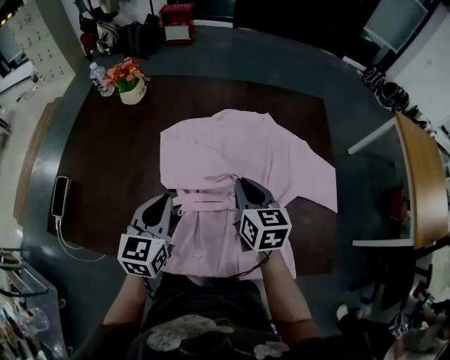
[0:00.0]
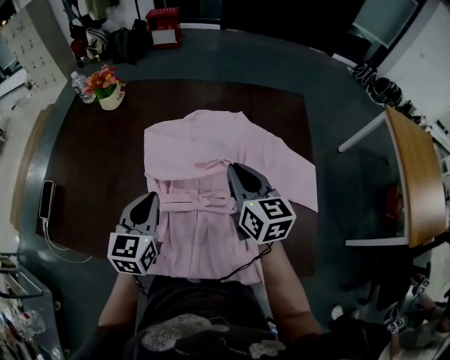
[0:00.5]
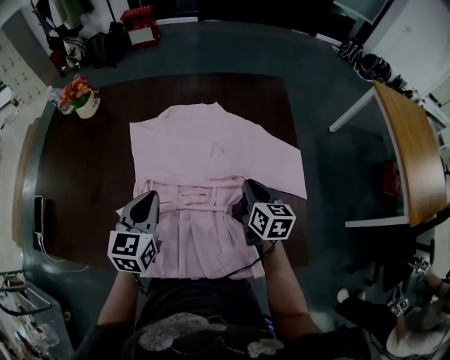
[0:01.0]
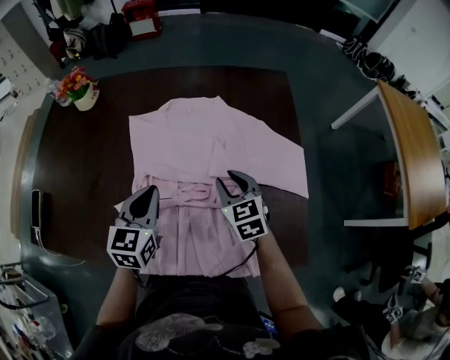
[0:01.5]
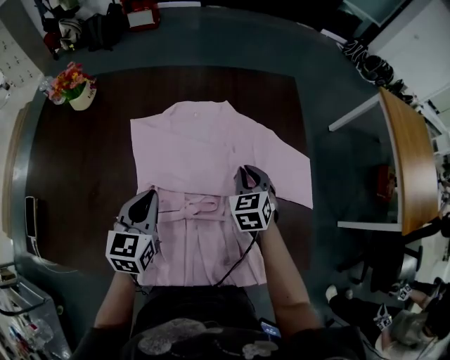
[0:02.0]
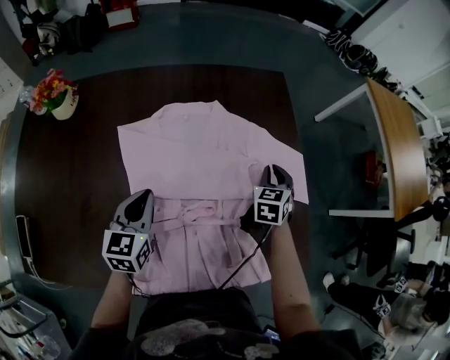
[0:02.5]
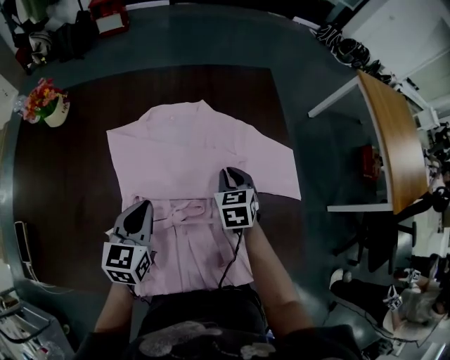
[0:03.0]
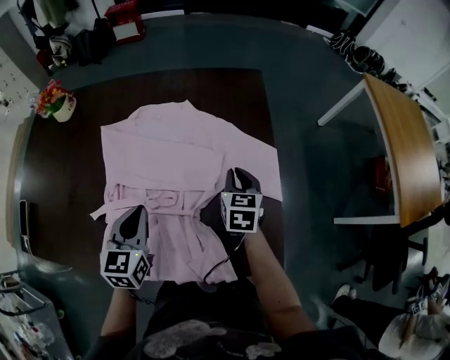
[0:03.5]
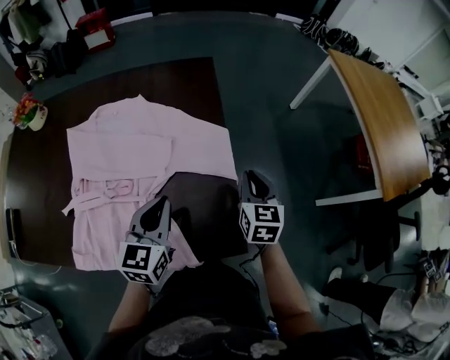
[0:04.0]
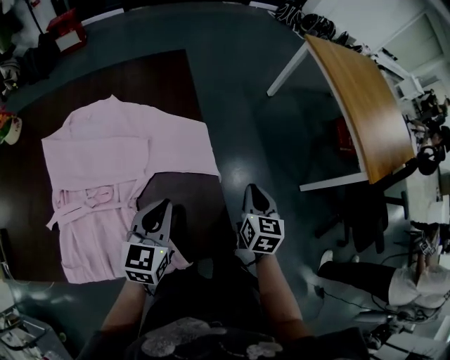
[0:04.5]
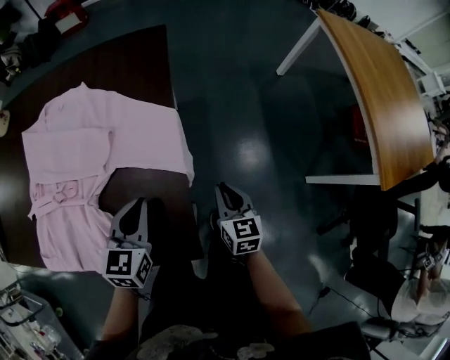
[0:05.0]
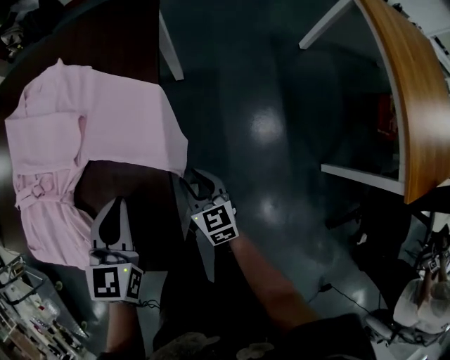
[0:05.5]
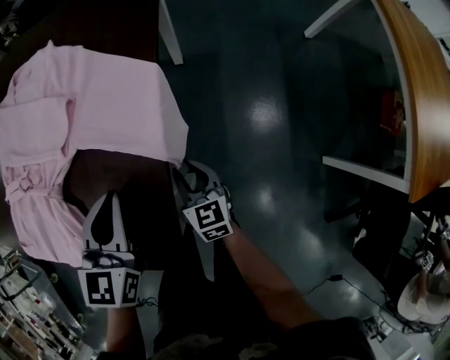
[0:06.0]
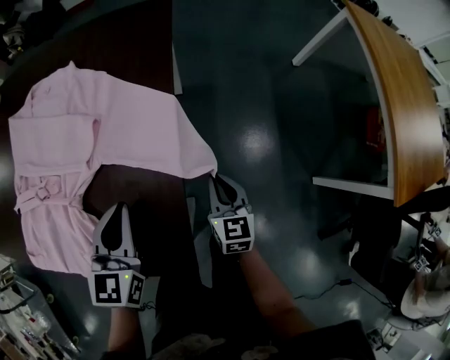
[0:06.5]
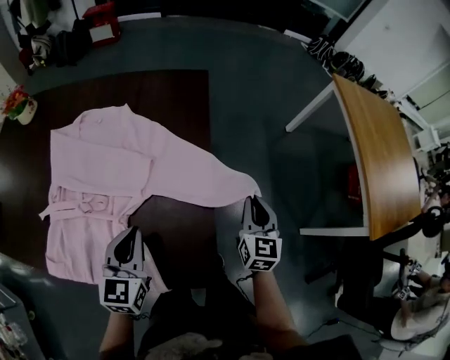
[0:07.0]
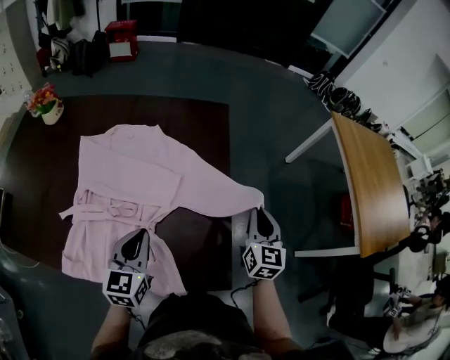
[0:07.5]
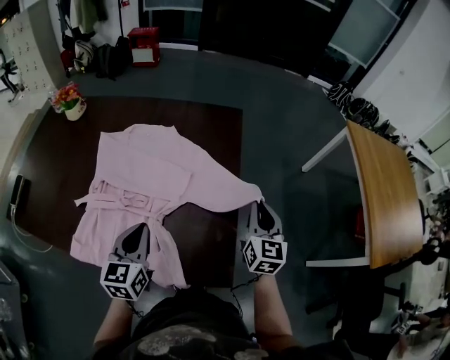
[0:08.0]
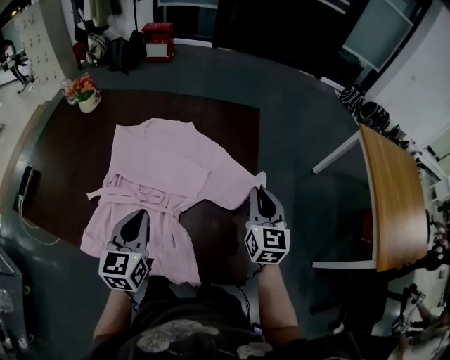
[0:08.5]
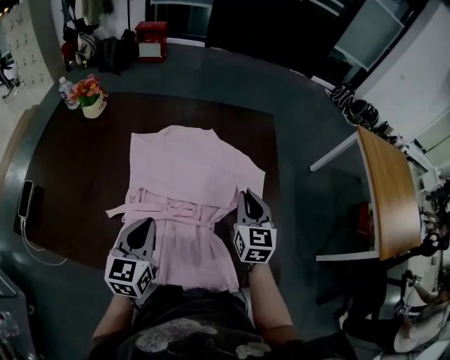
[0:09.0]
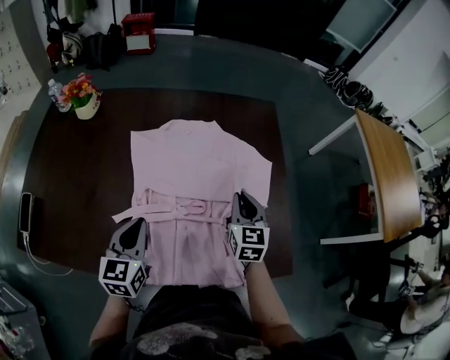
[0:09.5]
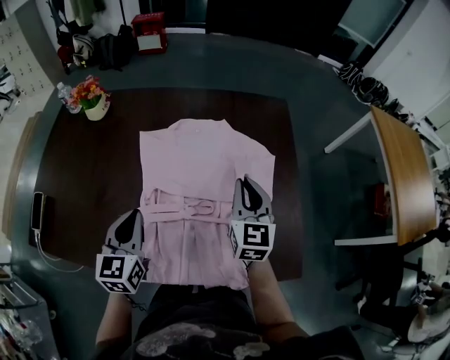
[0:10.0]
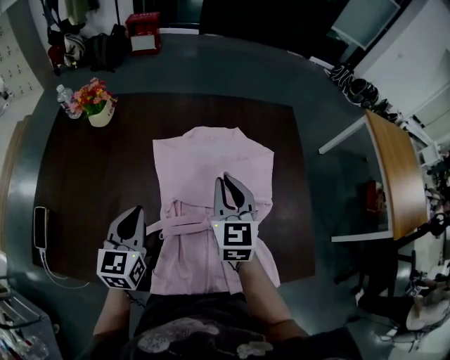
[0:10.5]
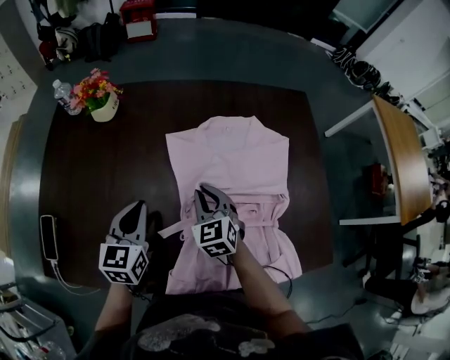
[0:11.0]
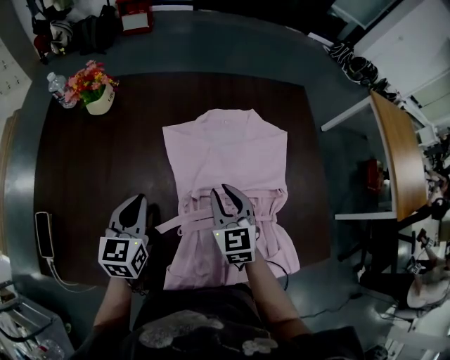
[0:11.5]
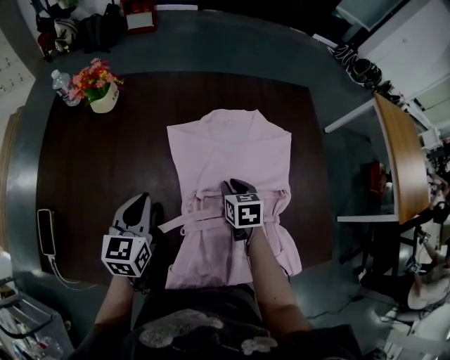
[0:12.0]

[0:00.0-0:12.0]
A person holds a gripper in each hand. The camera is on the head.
0:00.0 to 0:02.0: The left gripper is displaced to the right and forward by about 10 cm. The right gripper is displaced to the right, downward and forward by approximately 20 cm, and rotates roughly 40 degrees.
0:02.0 to 0:04.0: The right gripper goes left and right, approximately 30 cm each way, reversing 2 times, and swivels about 30 degrees. The left gripper is displaced to the right by roughly 30 cm.
0:04.0 to 0:06.0: The right gripper goes roughly 25 cm downward, swivels approximately 30 degrees, and opens its fingers. The left gripper moves roughly 15 cm.
0:06.0 to 0:08.0: The left gripper goes some 25 cm to the left and upward; the right gripper moves upward, roughly 30 cm, rotates some 30 degrees, and closes its fingers.
0:08.0 to 0:10.0: Both grippers travel together to the left, some 25 cm.
0:10.0 to 0:12.0: The right gripper goes some 25 cm downward and to the left, and tilts its fingers some 40 degrees downward. The left gripper moves to the left, forward and downward, approximately 15 cm.

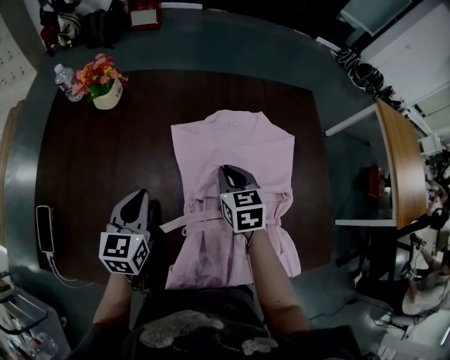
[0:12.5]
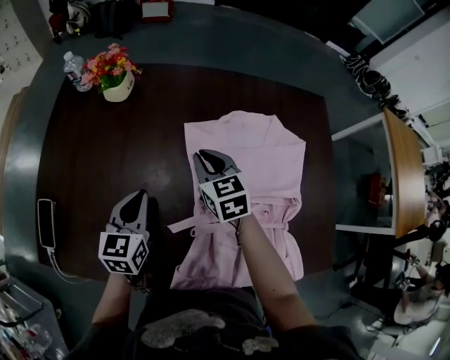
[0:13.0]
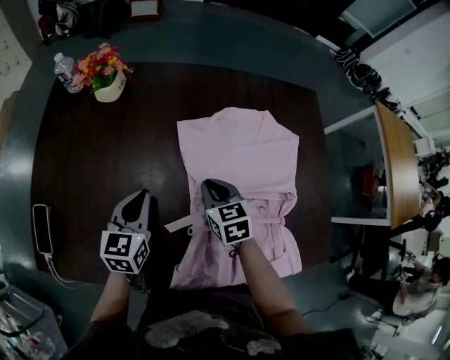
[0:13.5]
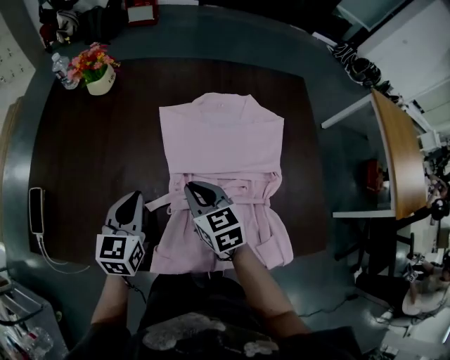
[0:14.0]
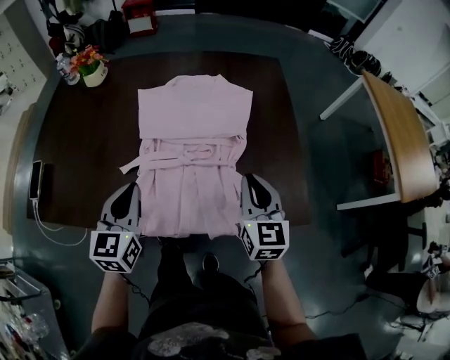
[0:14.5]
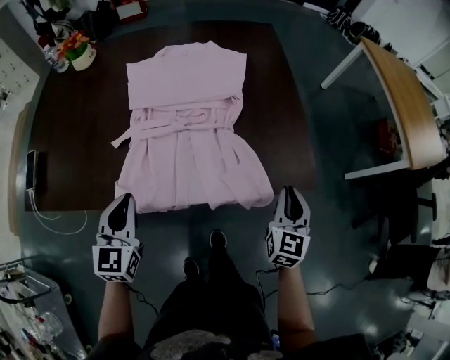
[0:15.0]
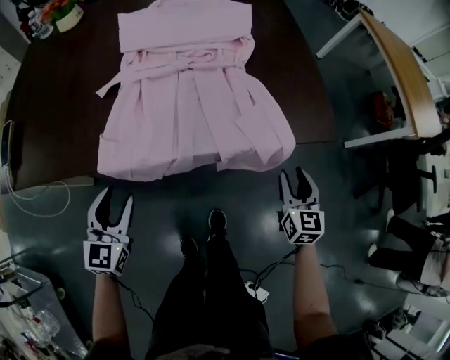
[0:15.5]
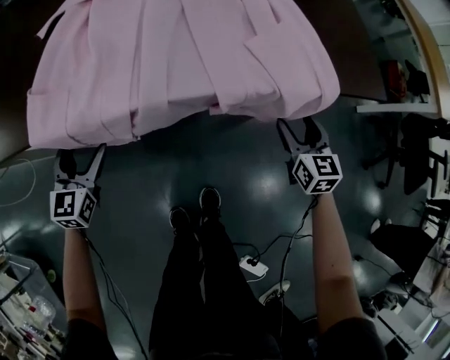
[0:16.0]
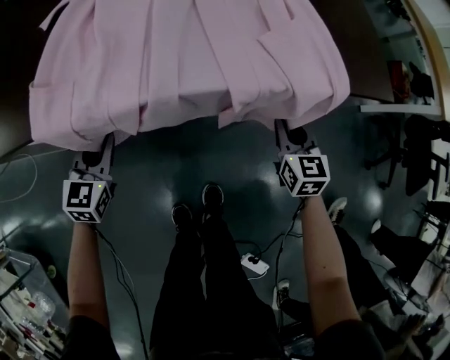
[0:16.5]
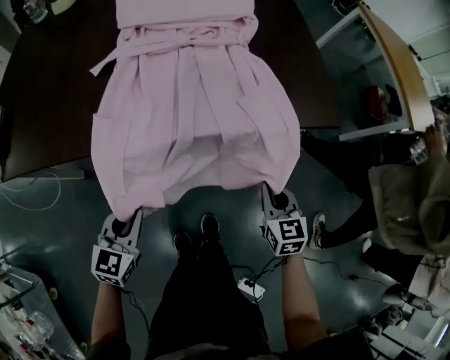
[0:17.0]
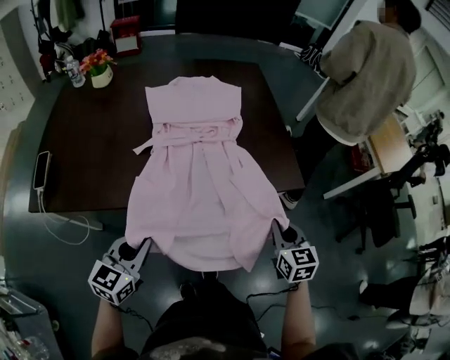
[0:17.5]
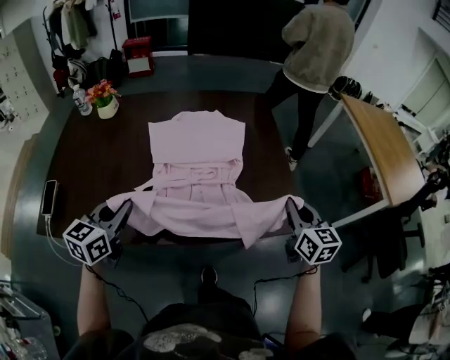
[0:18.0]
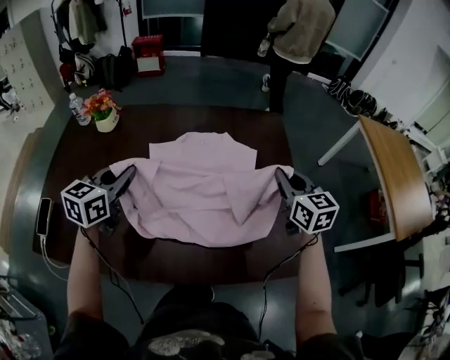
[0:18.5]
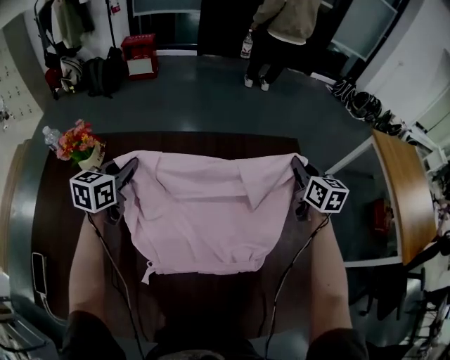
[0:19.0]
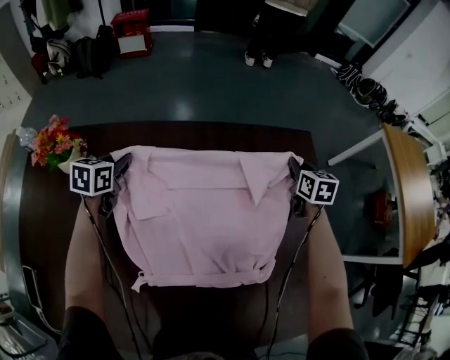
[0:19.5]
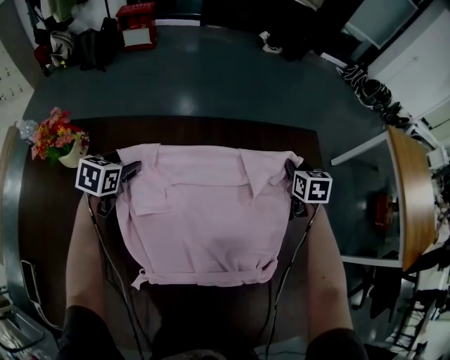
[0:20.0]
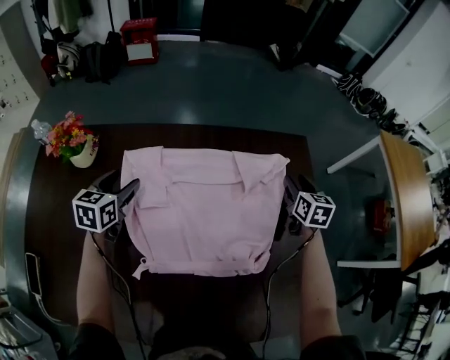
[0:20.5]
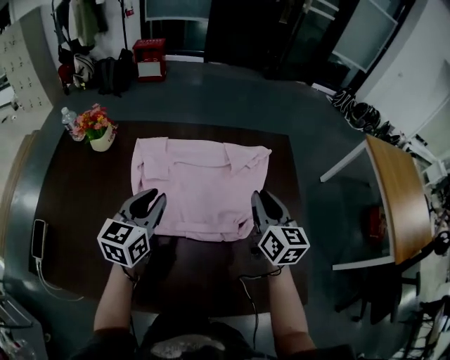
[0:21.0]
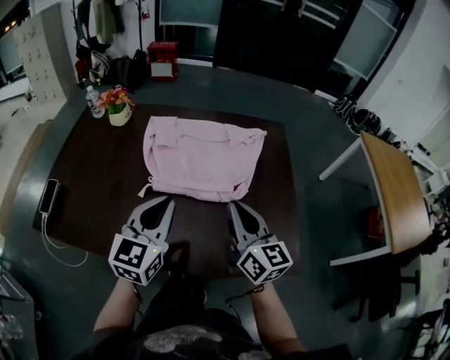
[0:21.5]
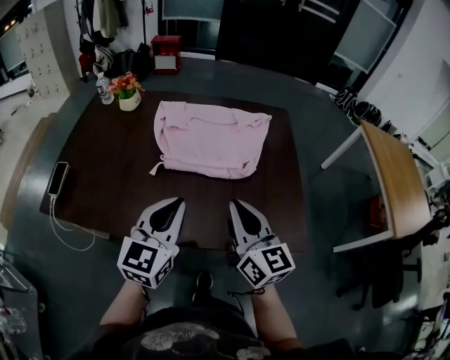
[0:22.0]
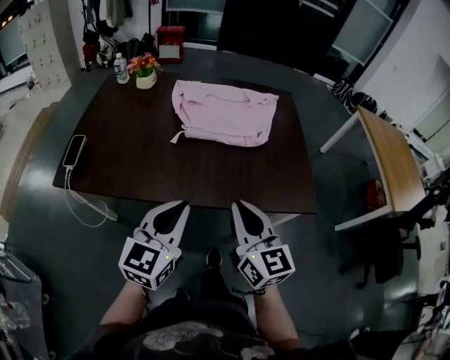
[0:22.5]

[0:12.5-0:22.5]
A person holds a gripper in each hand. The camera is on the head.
0:12.5 to 0:14.5: The grippers both shift backward and to the right by some 30 cm. The right gripper swivels roughly 20 degrees.
0:14.5 to 0:16.5: The right gripper travels downward and backward by some 40 cm, and opens, then closes again, while the left gripper travels downward by some 40 cm, rotates about 20 degrees, and opens, then closes once more.
0:16.5 to 0:18.5: Both grippers move upward and forward, roughly 50 cm.
0:18.5 to 0:20.5: The left gripper heads forward, downward and to the left, covering some 30 cm, and opens, while the right gripper heads forward and downward, covering approximately 30 cm, turns by approximately 20 degrees, and opens its fingers.
0:20.5 to 0:22.5: Both grippers are carried backward, about 60 cm. The right gripper turns by approximately 40 degrees, and closes its fingers, while the left gripper turns by about 30 degrees, and closes its fingers.

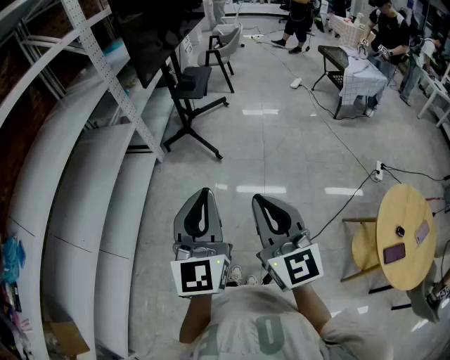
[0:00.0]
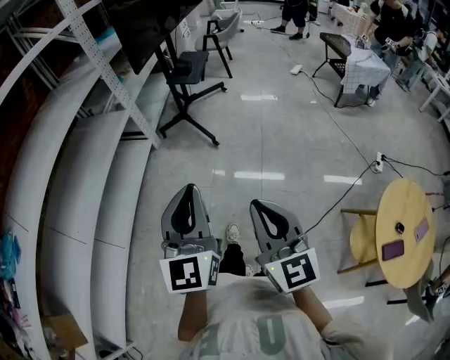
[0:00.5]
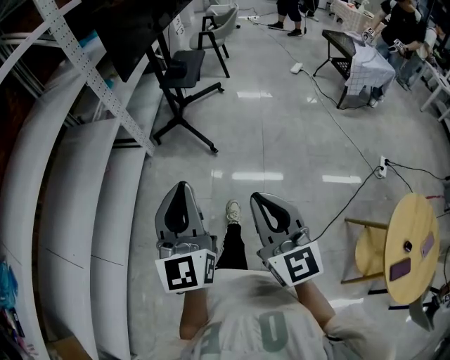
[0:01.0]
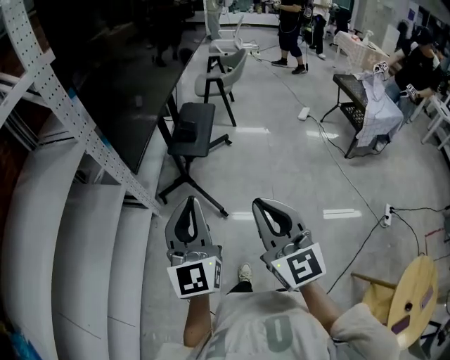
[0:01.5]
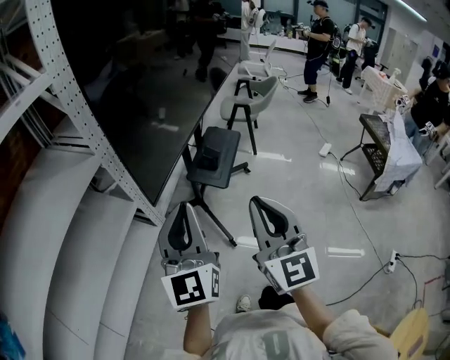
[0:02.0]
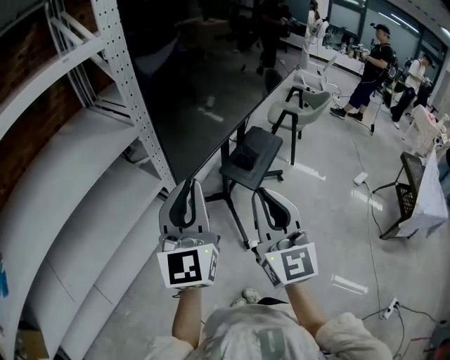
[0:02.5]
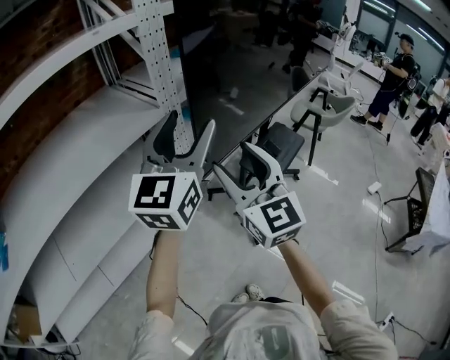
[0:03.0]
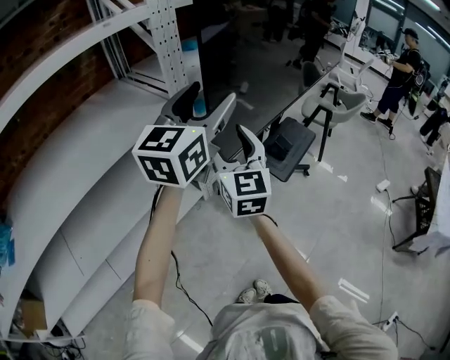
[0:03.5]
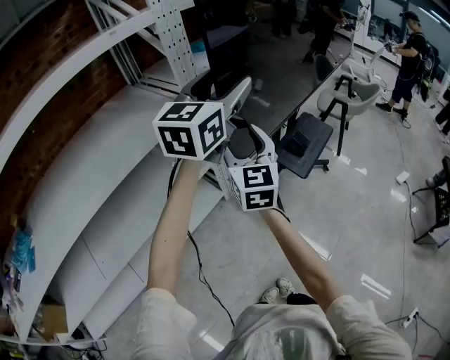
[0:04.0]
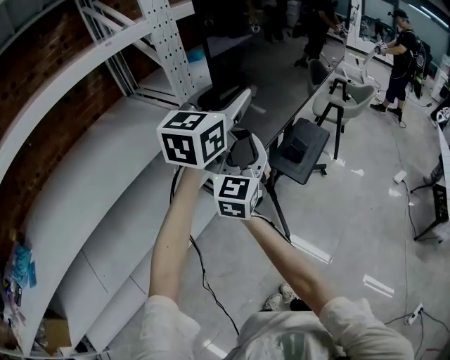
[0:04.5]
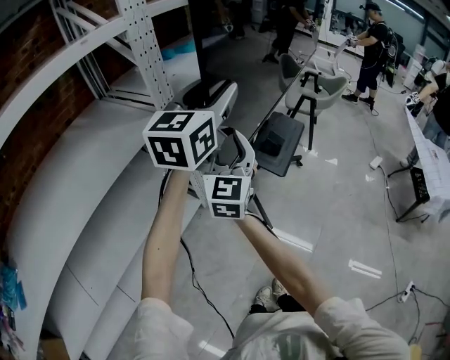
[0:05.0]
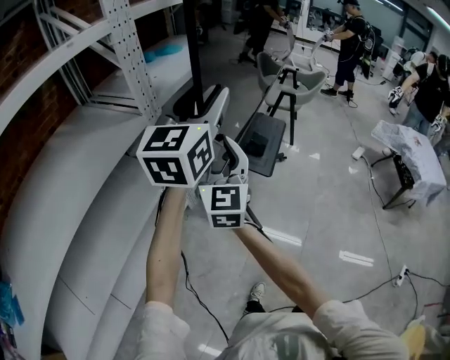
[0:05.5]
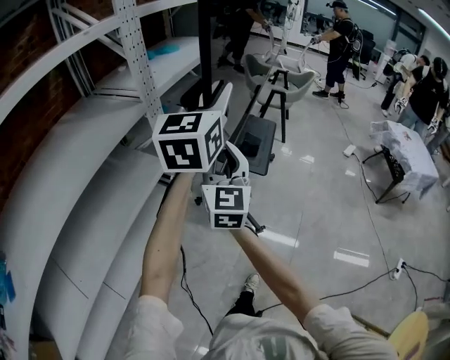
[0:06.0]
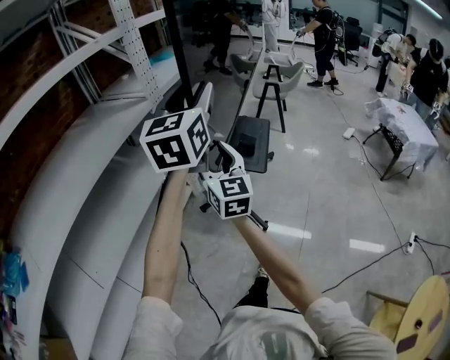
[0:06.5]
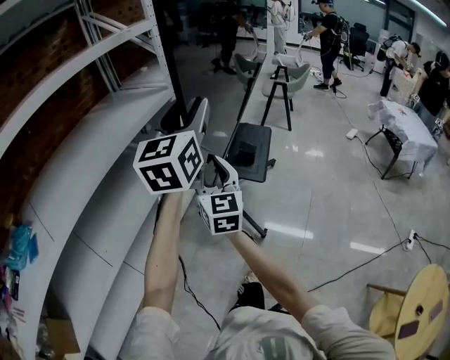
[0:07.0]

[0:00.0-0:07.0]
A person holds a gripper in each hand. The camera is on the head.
0:00.0 to 0:02.0: The two grippers travel together, forward, about 60 cm.
0:02.0 to 0:03.5: The left gripper shifts roughly 20 cm forward, upward and to the left, and opens up. The right gripper heads to the left and forward, covering approximately 30 cm, changes its angle by approximately 20 degrees, and opens up.
0:03.5 to 0:05.0: The right gripper rotates roughly 20 degrees.
0:05.0 to 0:07.0: Both grippers move backward, roughly 40 cm.
